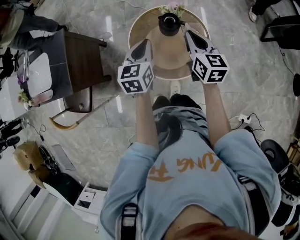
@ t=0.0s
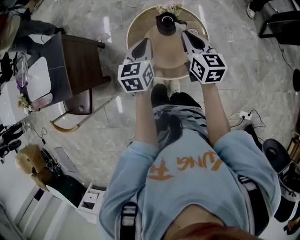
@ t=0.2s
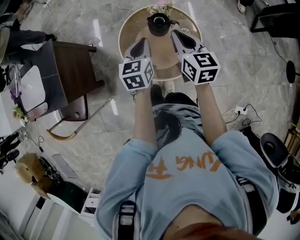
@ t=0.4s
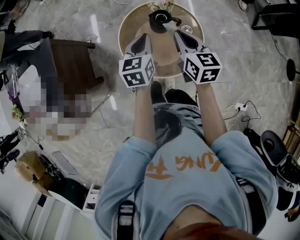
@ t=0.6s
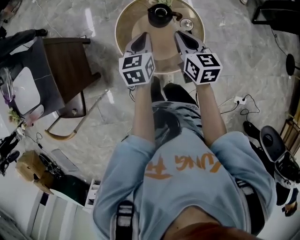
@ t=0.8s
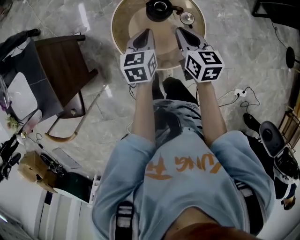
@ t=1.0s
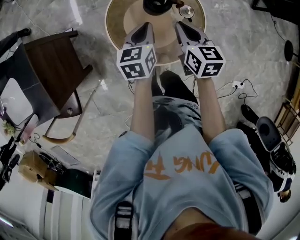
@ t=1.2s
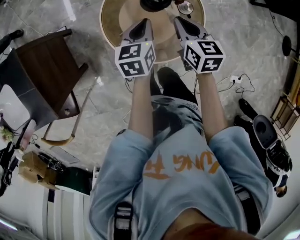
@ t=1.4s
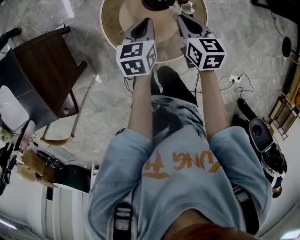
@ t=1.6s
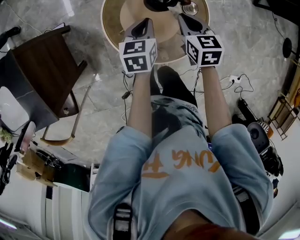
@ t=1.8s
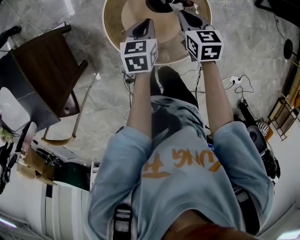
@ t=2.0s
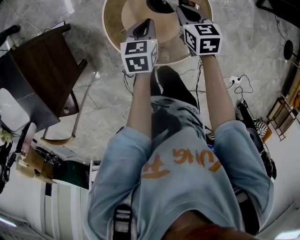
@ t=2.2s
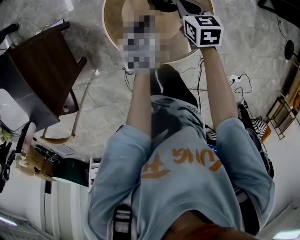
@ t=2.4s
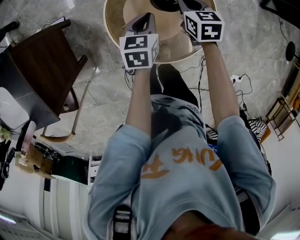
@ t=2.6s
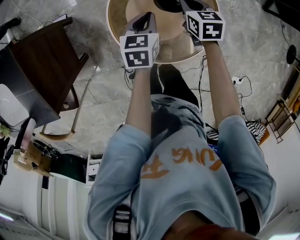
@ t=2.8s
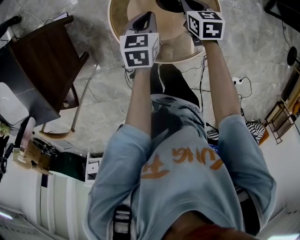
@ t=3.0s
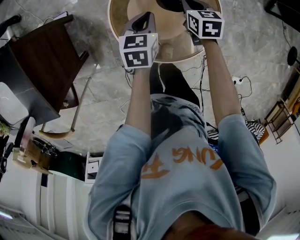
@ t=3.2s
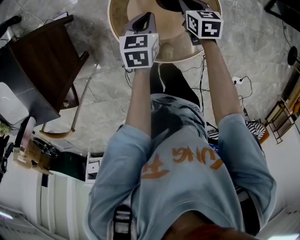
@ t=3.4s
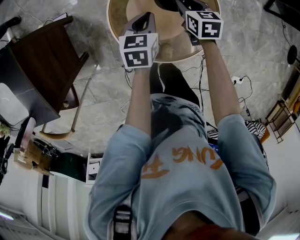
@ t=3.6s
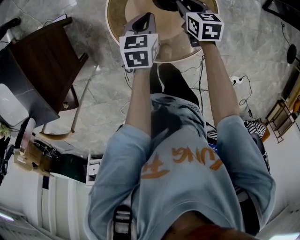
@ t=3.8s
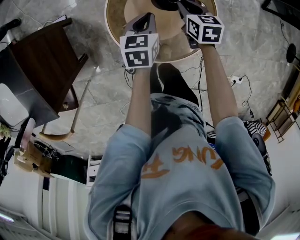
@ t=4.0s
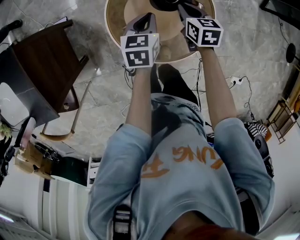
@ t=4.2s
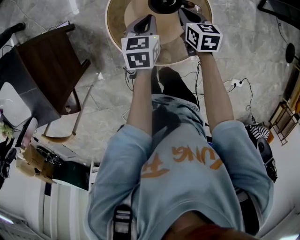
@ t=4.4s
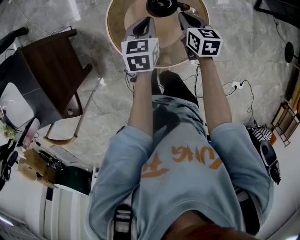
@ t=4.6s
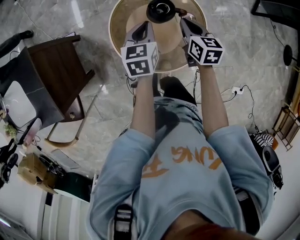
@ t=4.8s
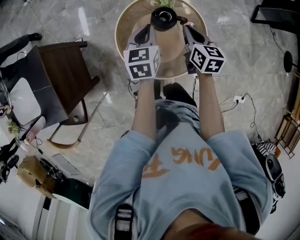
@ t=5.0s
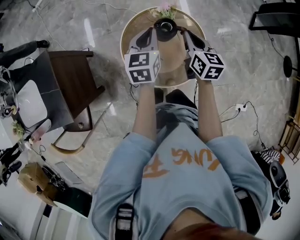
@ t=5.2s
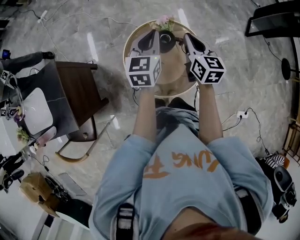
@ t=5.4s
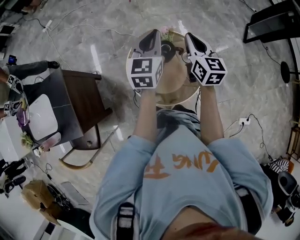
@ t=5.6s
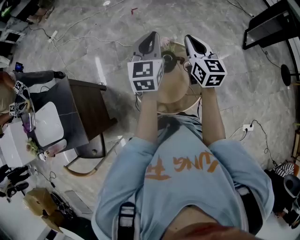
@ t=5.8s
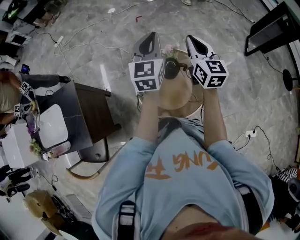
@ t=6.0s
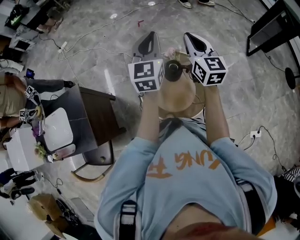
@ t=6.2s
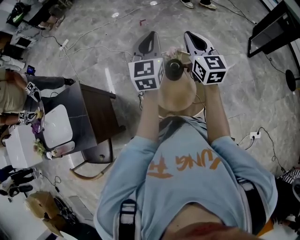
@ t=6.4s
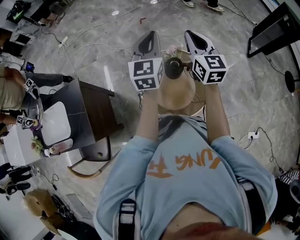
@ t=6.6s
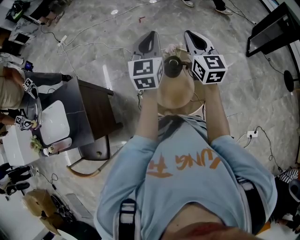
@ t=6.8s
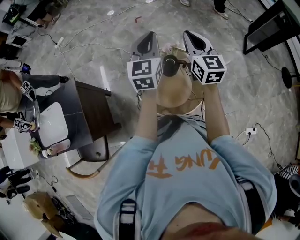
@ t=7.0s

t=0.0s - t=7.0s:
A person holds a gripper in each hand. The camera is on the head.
t=0.0s - t=1.4s: The right gripper goes about 15 cm downward. The left gripper heads downward and forward, covering approximately 20 cm.
t=1.4s - t=2.8s: The left gripper is displaced downward by approximately 5 cm, while the right gripper goes about 15 cm downward and forward.
t=2.8s - t=4.2s: The right gripper opens, then closes once more.
t=4.2s - t=5.6s: The two grippers go some 30 cm upward. The right gripper angles its fingers upward, by some 30 degrees. The left gripper tips its fingers upward by about 30 degrees.
t=5.6s - t=7.0s: Both grippers move upward, approximately 10 cm.

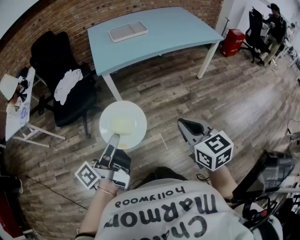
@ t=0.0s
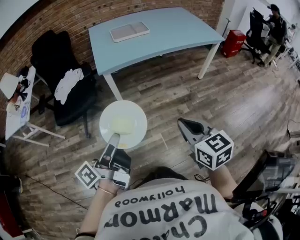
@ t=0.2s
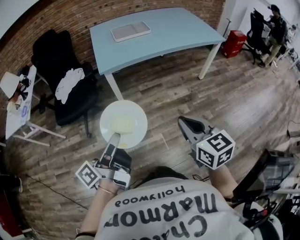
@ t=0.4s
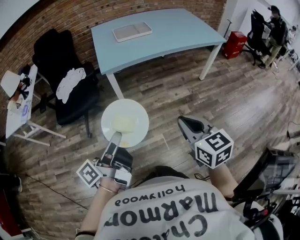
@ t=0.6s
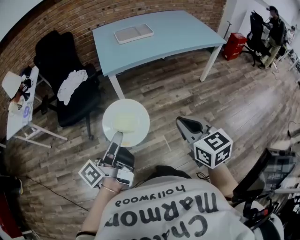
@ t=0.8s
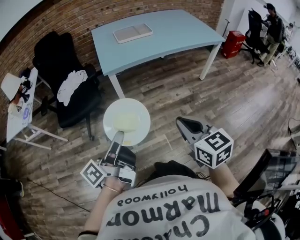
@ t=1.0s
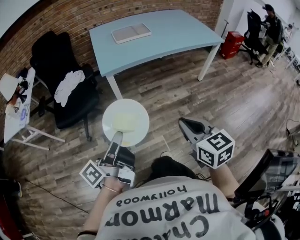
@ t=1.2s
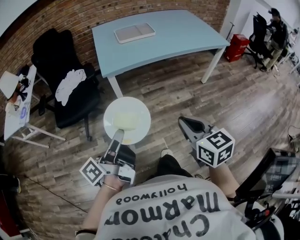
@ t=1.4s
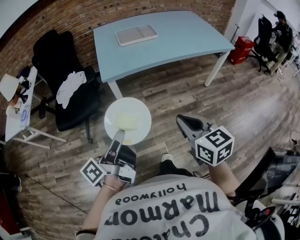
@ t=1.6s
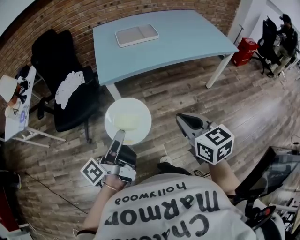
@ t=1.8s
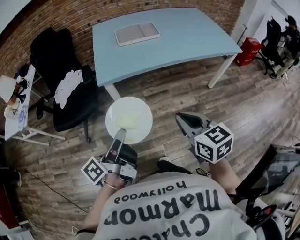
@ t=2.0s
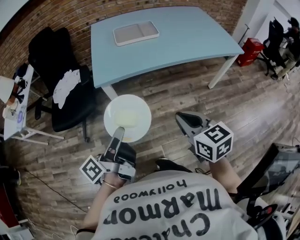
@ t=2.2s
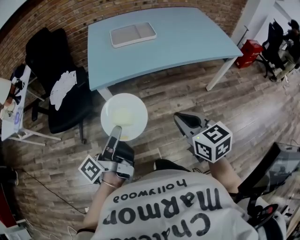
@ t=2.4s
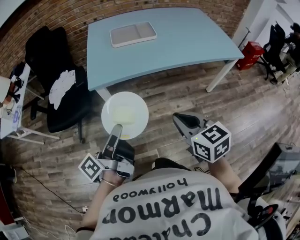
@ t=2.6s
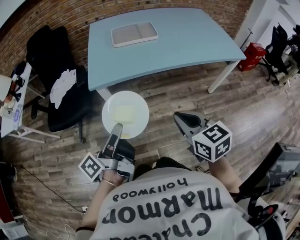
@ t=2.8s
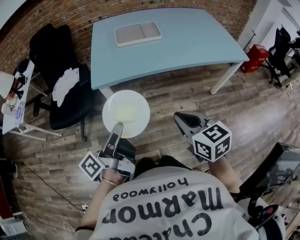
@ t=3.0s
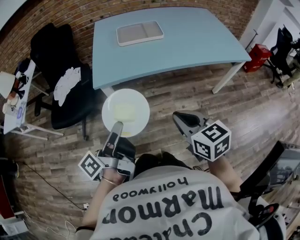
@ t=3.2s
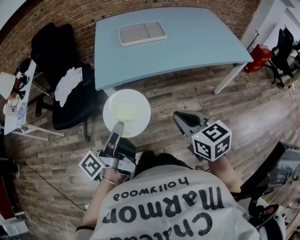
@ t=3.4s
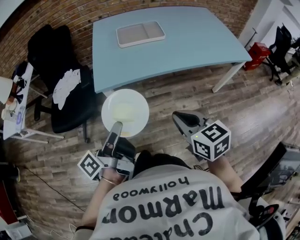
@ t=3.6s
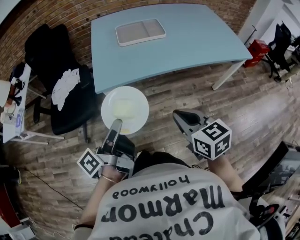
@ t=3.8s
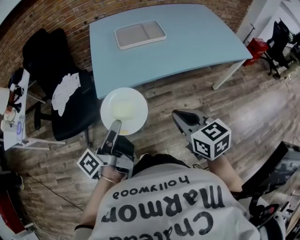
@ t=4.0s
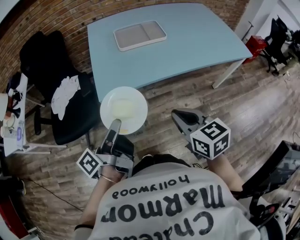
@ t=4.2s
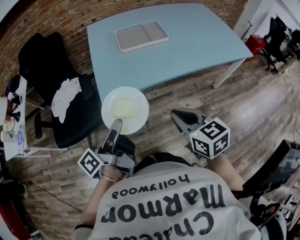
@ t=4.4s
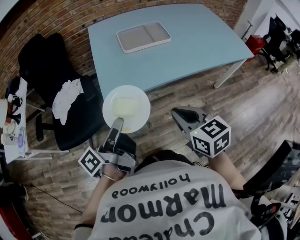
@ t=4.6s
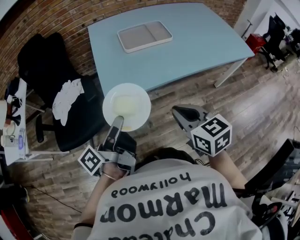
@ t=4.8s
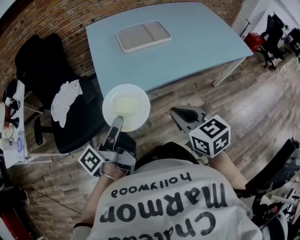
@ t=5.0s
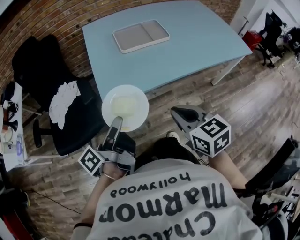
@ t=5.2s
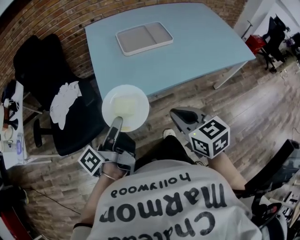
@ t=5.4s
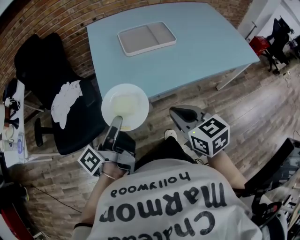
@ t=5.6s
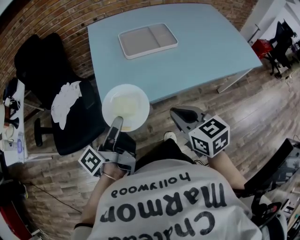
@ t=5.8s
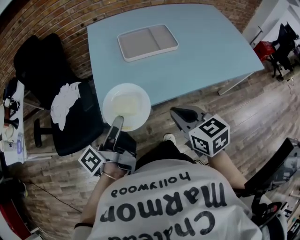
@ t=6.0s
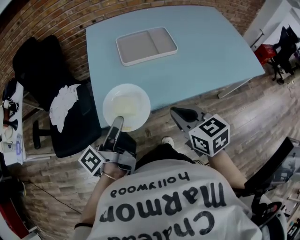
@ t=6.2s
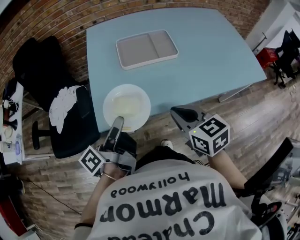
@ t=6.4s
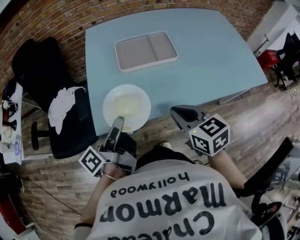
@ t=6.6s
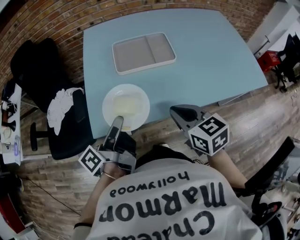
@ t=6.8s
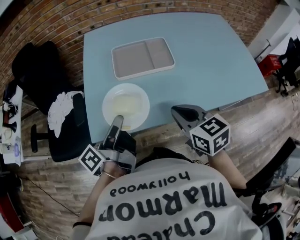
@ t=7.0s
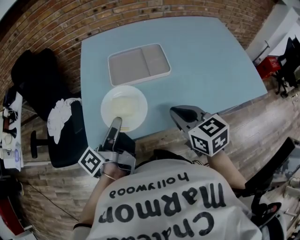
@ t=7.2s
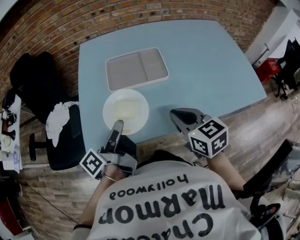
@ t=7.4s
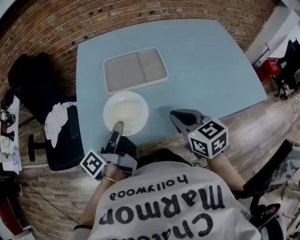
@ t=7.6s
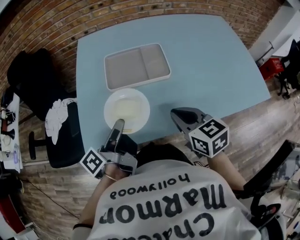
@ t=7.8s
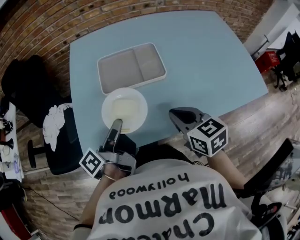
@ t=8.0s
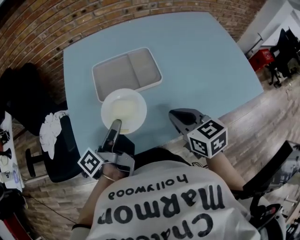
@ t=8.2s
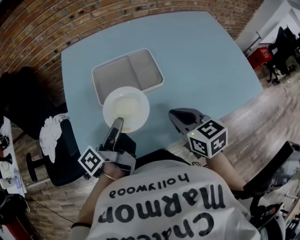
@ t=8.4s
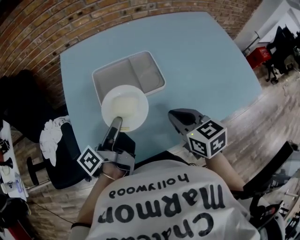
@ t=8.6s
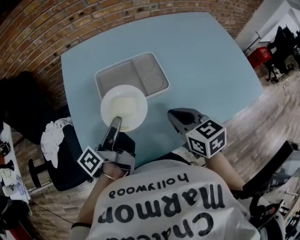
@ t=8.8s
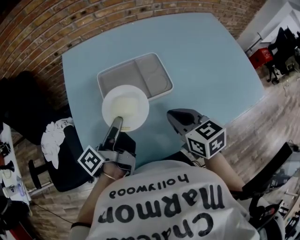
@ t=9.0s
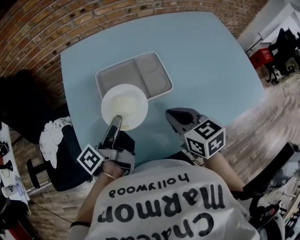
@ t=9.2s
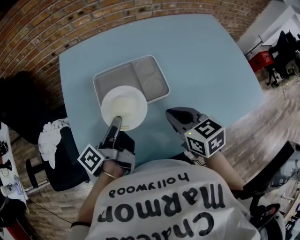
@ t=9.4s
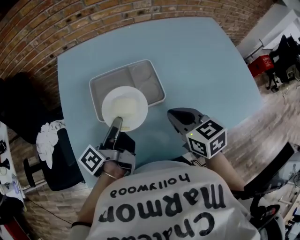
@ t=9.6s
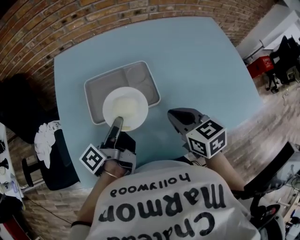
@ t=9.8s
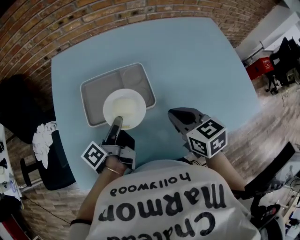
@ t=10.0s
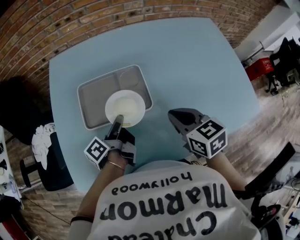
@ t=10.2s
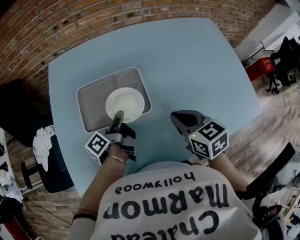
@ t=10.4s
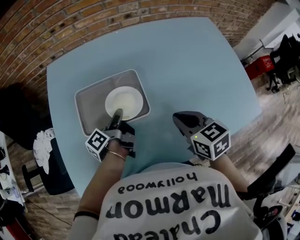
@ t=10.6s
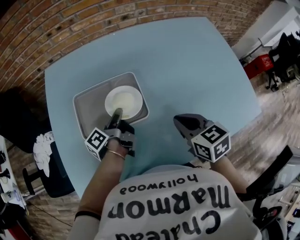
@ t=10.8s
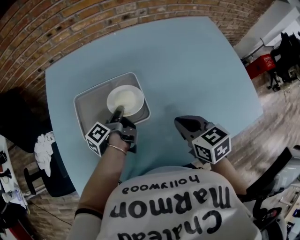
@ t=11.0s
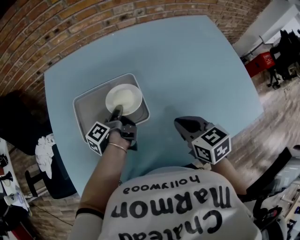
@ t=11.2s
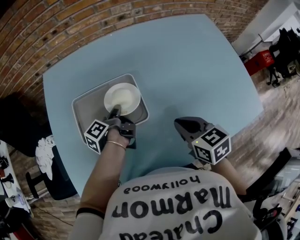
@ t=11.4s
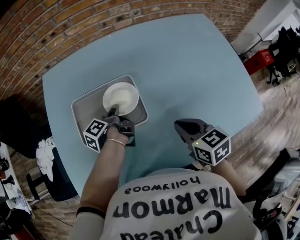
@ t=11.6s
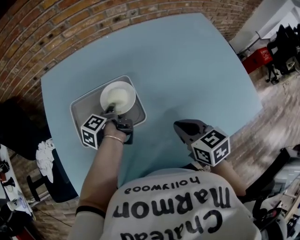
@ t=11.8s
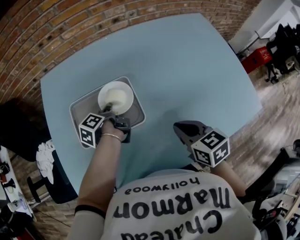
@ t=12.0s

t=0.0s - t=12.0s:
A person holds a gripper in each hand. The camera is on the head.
t=0.0s - t=1.6s: The right gripper moves some 10 cm.
t=1.6s - t=3.0s: The right gripper moves approximately 15 cm.
t=3.0s - t=4.4s: The right gripper changes place by roughly 15 cm.
t=4.4s - t=6.0s: The right gripper shifts by about 15 cm.
t=6.0s - t=7.6s: The right gripper changes place by roughly 20 cm.
t=7.6s - t=9.0s: The right gripper changes place by about 10 cm.
t=9.0s - t=10.4s: The right gripper ends up roughly 15 cm from where it was.

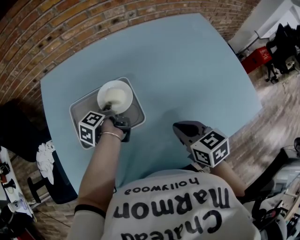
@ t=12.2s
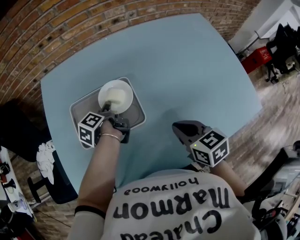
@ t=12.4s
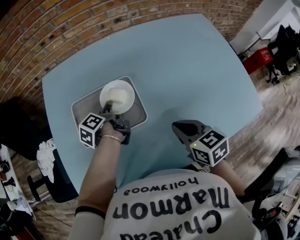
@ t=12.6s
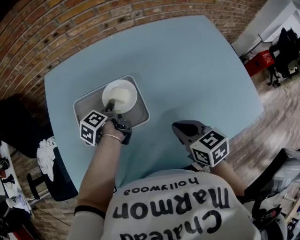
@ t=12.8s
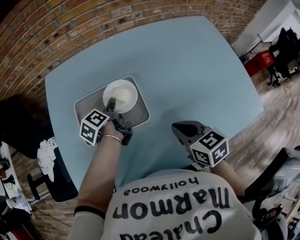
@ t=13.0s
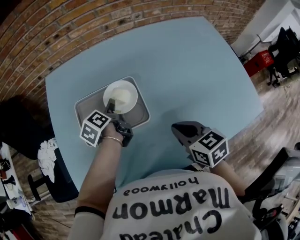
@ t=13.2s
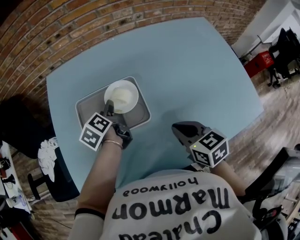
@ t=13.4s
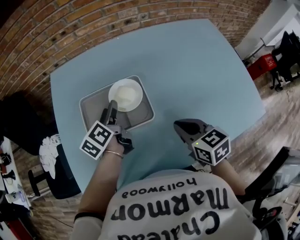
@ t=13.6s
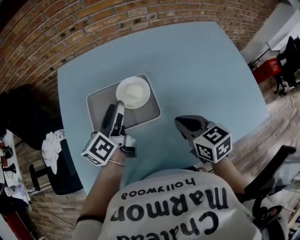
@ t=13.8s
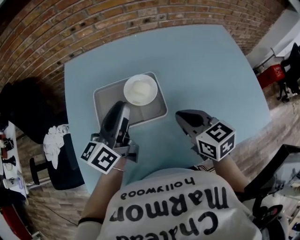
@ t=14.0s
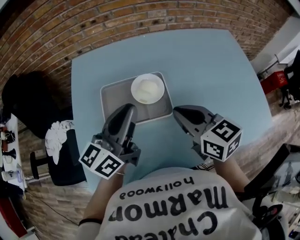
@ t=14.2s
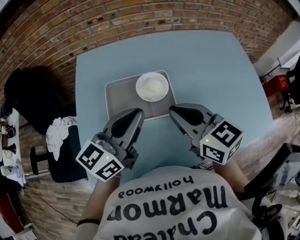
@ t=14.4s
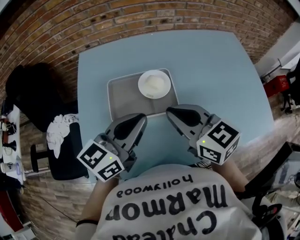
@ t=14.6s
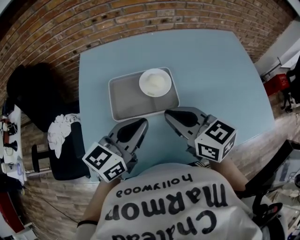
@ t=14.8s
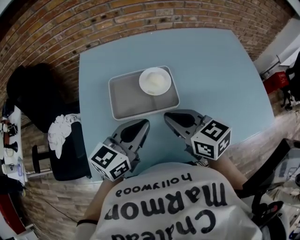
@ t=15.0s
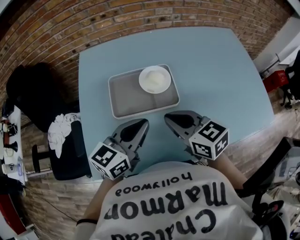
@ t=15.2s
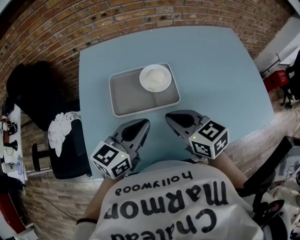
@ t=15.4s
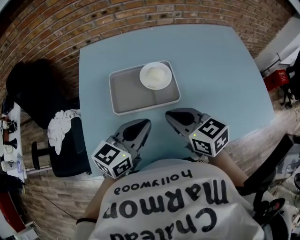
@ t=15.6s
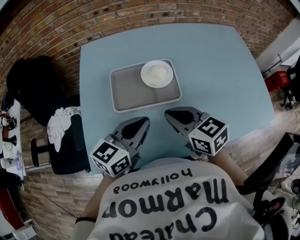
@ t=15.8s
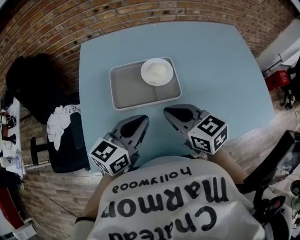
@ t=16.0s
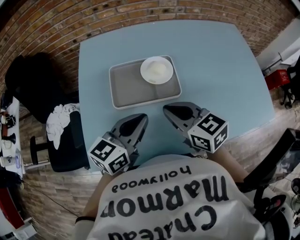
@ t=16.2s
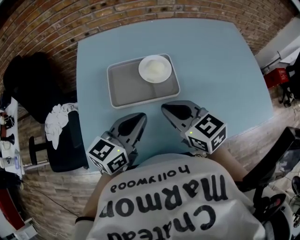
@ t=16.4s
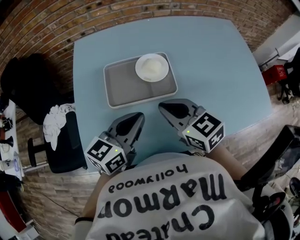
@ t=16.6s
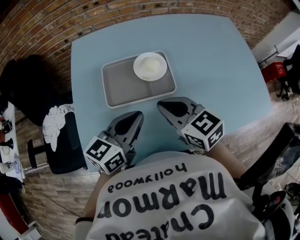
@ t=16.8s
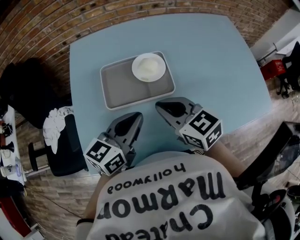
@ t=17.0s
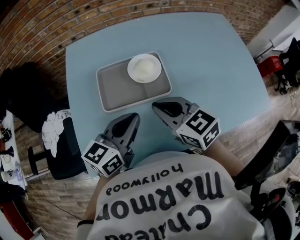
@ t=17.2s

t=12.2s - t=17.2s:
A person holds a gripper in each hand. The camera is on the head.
t=12.2s - t=13.8s: The right gripper moves roughly 5 cm.
t=13.8s - t=15.6s: The right gripper reaches about 10 cm upward, then returns.
